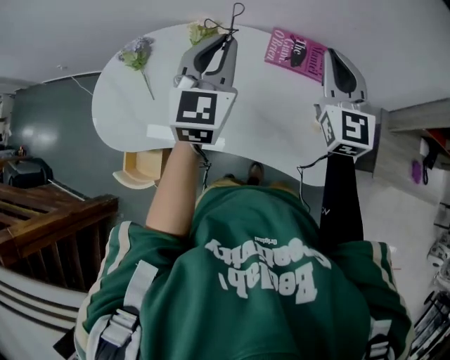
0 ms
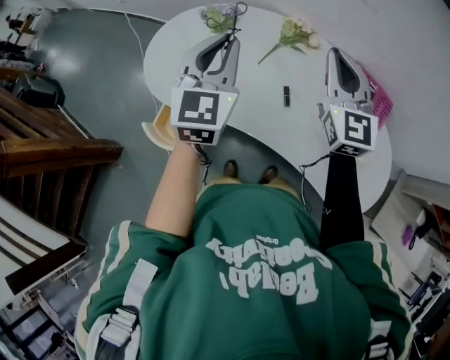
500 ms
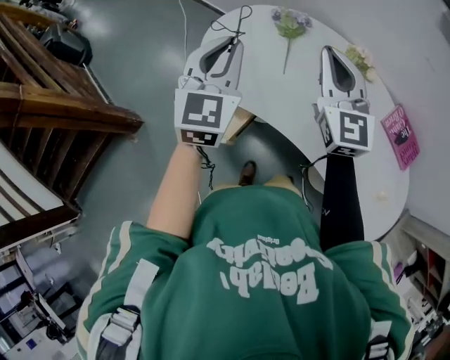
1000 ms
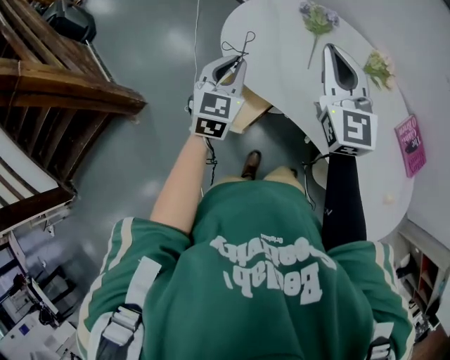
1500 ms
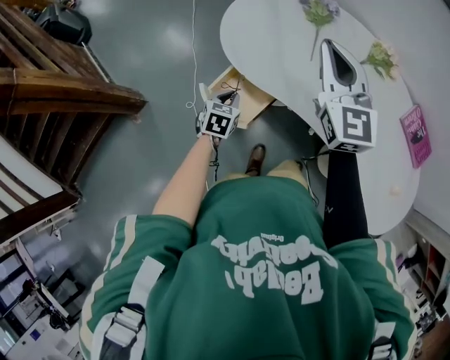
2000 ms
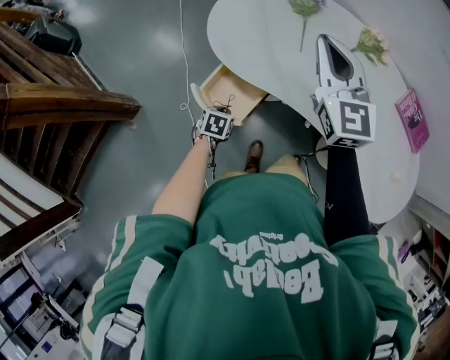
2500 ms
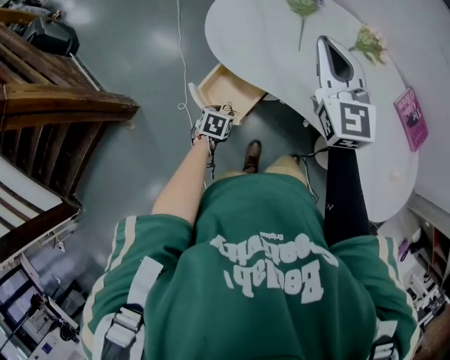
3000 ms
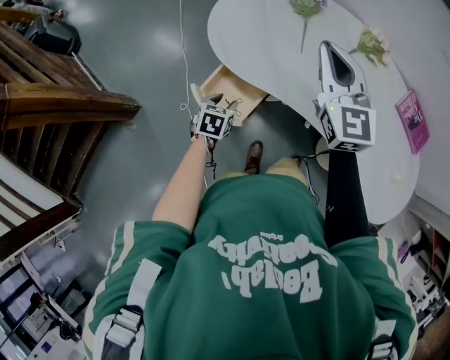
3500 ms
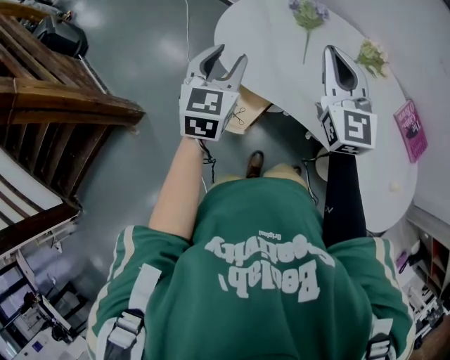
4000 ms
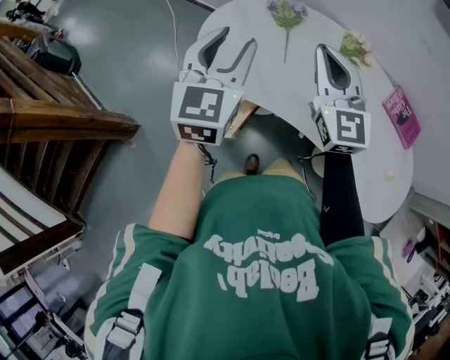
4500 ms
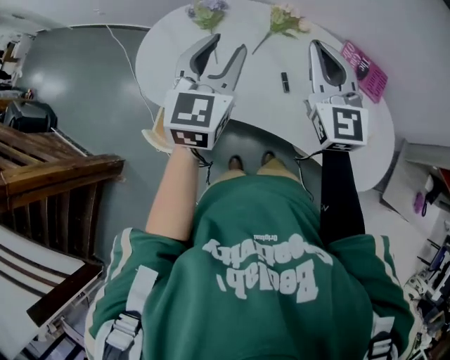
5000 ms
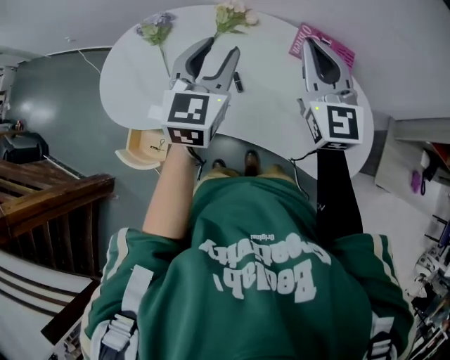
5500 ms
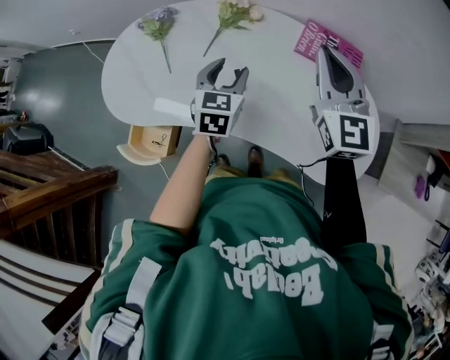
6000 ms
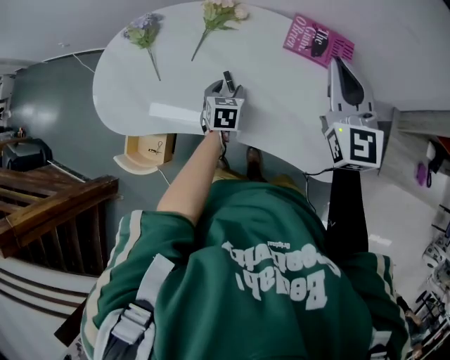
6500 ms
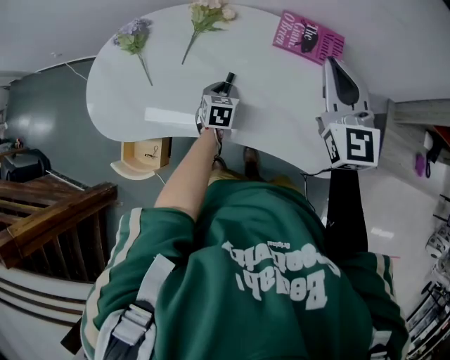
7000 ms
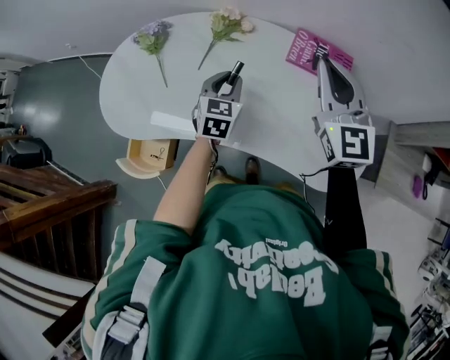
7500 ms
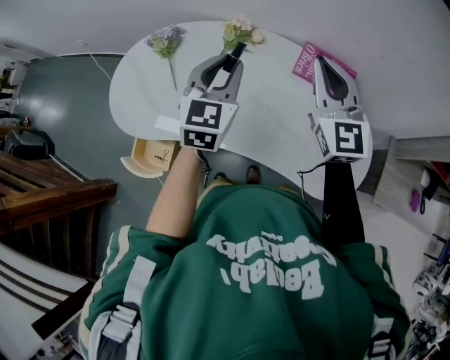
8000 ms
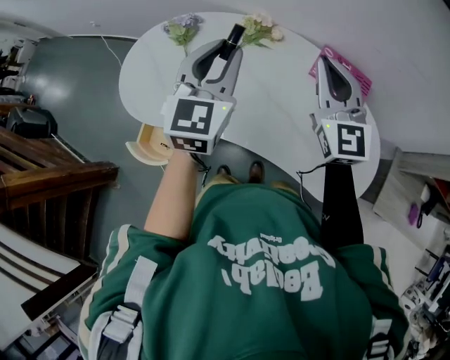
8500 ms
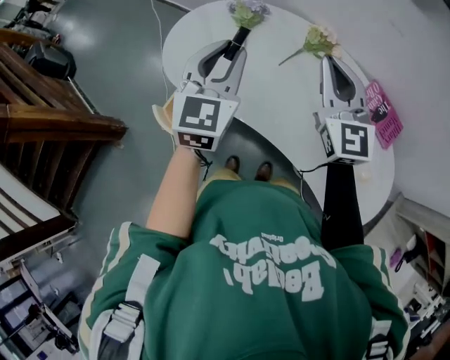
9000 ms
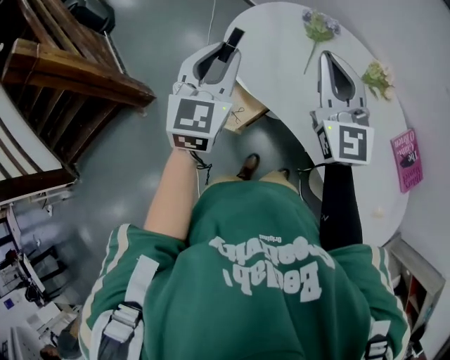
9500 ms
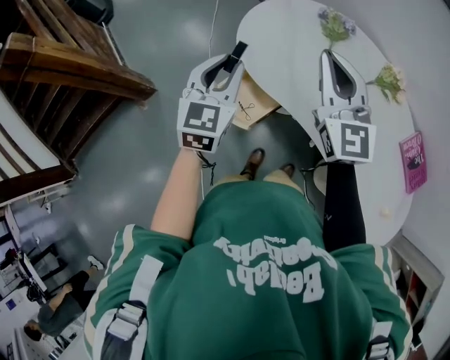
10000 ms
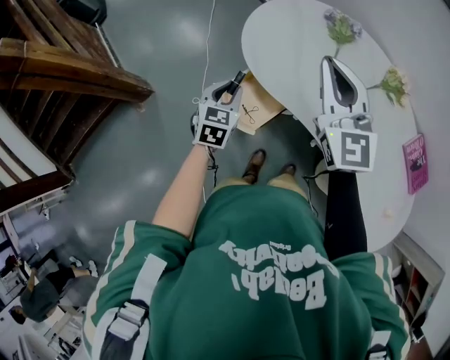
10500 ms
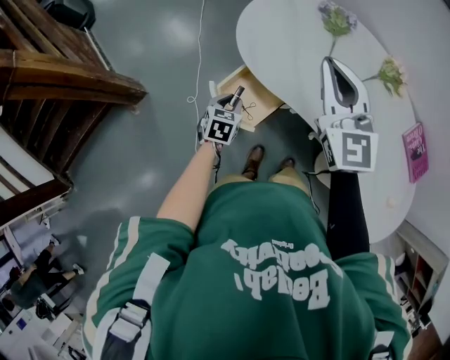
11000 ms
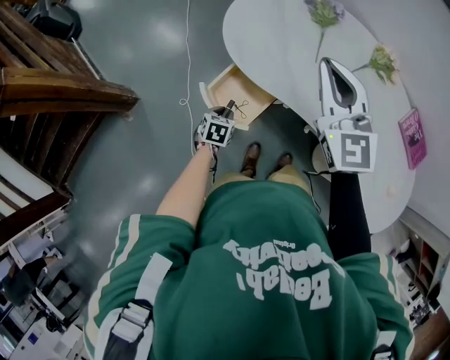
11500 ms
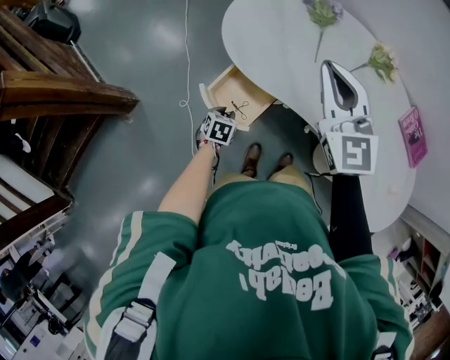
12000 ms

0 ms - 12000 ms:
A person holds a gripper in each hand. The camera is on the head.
0 ms - 2000 ms: The two grippers travel together, some 50 cm. The left gripper tilts its fingers some 40 degrees downward, while the right gripper rotates some 40 degrees.
2000 ms - 4000 ms: The left gripper moves upward, some 25 cm, angles its fingers upward, by roughly 30 degrees, and opens.
4000 ms - 6000 ms: The pair of grippers is taken some 40 cm. The right gripper swivels approximately 30 degrees. Meanwhile the left gripper swivels roughly 20 degrees.
6000 ms - 8000 ms: The left gripper travels upward by roughly 15 cm, and closes.
8000 ms - 10000 ms: The pair of grippers is taken approximately 40 cm. The right gripper swivels approximately 40 degrees. The left gripper swivels about 40 degrees.
10000 ms - 12000 ms: The left gripper moves downward, roughly 35 cm, and tips its fingers downward by roughly 40 degrees.

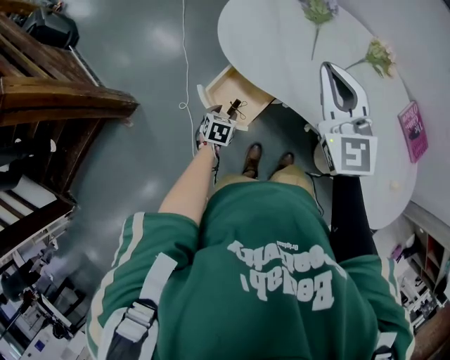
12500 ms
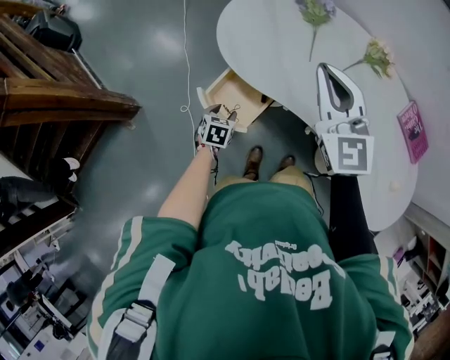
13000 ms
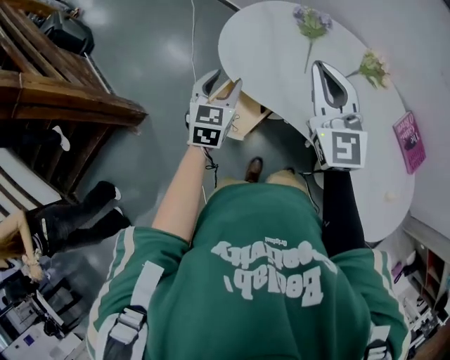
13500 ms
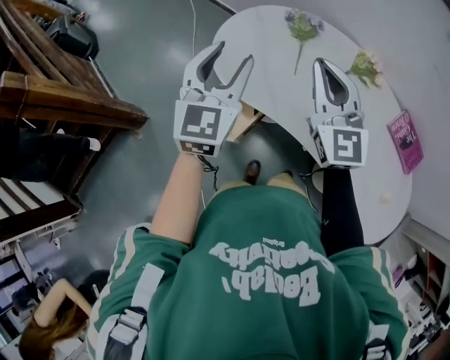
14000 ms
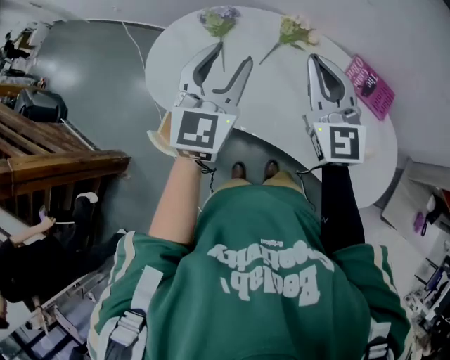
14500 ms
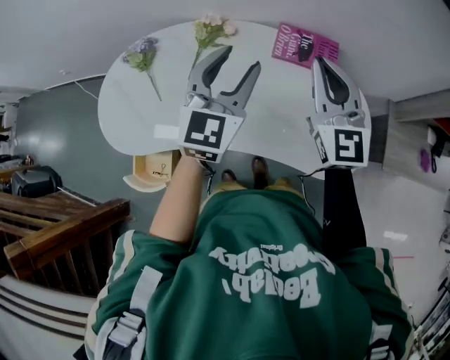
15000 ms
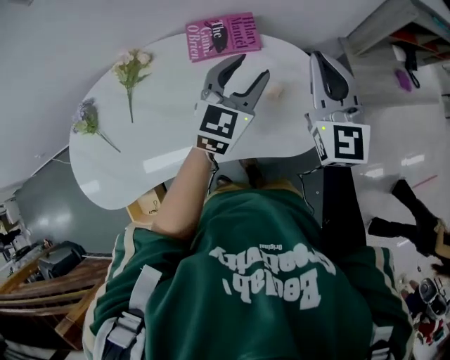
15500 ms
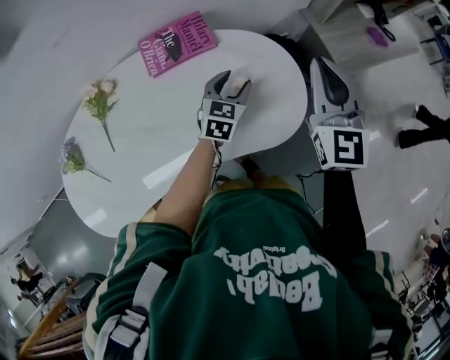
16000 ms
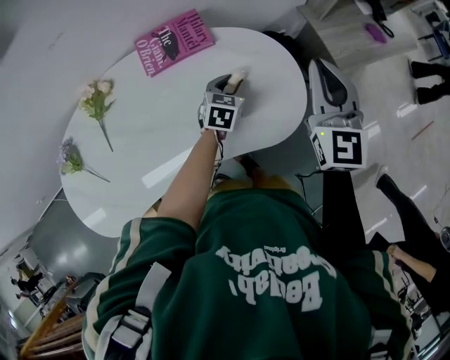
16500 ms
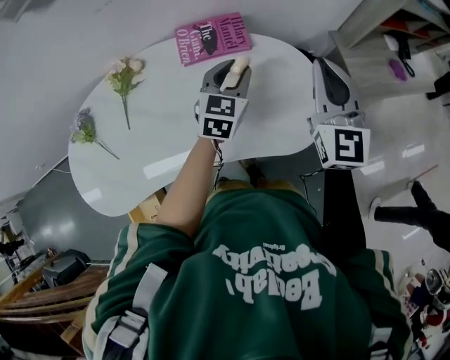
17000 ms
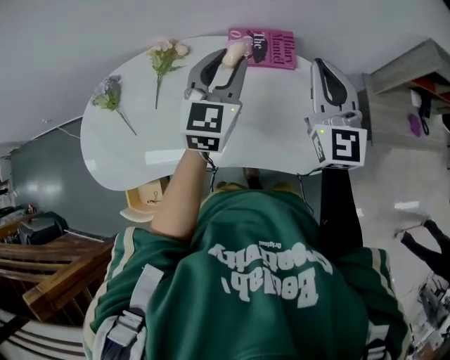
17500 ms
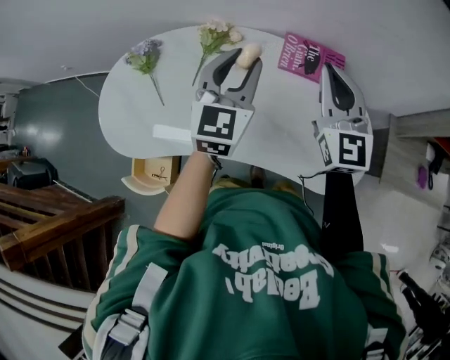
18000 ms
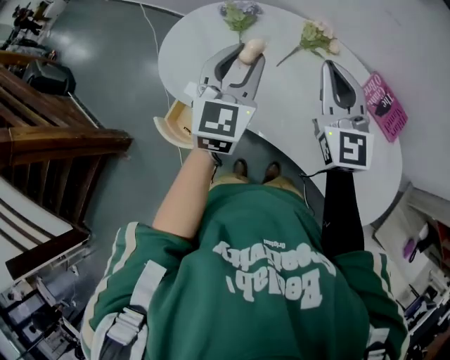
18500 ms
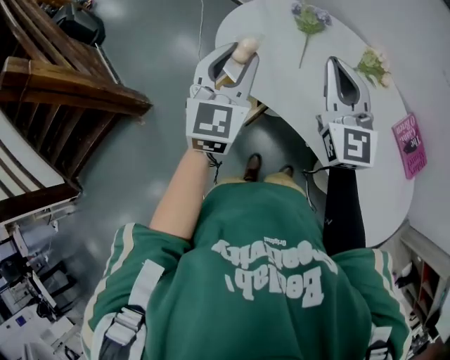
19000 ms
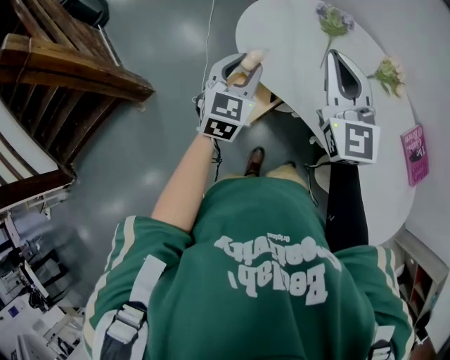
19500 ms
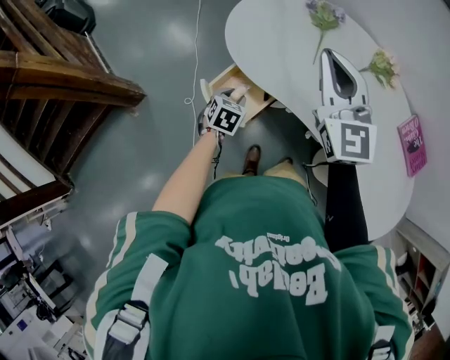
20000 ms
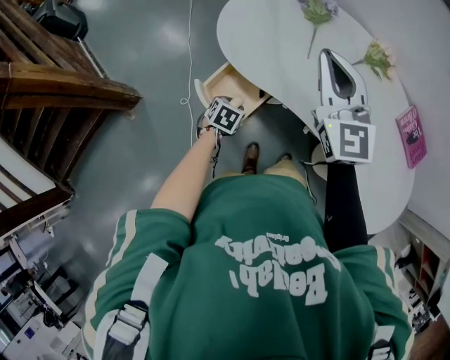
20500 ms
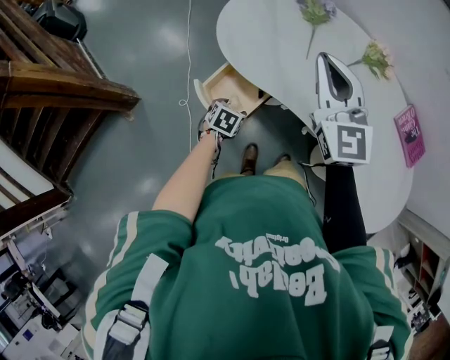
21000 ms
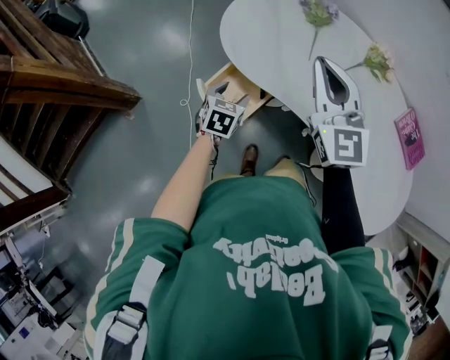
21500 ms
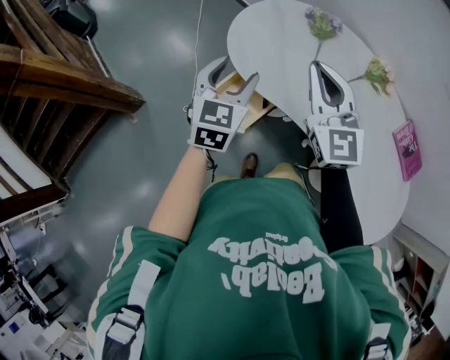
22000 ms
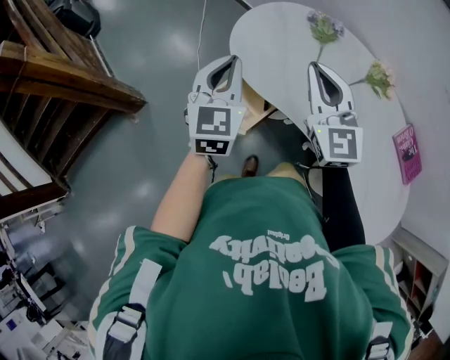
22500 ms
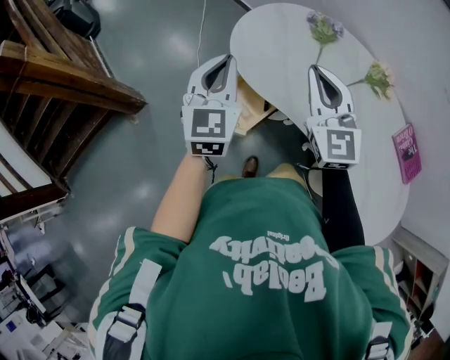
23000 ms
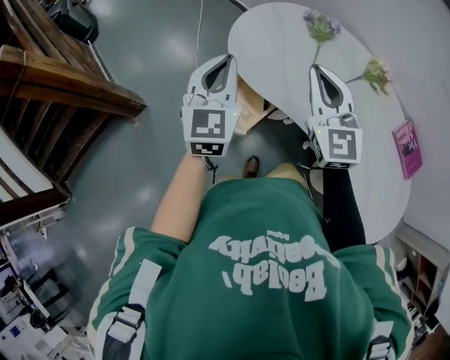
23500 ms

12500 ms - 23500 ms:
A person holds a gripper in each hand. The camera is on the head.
12500 ms - 14500 ms: The right gripper goes approximately 25 cm to the right, and rotates some 20 degrees. The left gripper heads upward and to the right, covering about 60 cm, and angles its fingers upward, by approximately 60 degrees.
14500 ms - 16000 ms: Both grippers are carried roughly 50 cm. The right gripper rotates some 60 degrees, while the left gripper tips its fingers downward by approximately 30 degrees.
16000 ms - 18000 ms: The left gripper changes place by about 40 cm, and changes its angle by approximately 50 degrees. The right gripper moves approximately 30 cm, and changes its angle by approximately 40 degrees.
18000 ms - 20000 ms: The two grippers travel together, roughly 50 cm. The right gripper rotates roughly 40 degrees. The left gripper tilts its fingers some 50 degrees downward.
20000 ms - 21500 ms: The left gripper opens.
21500 ms - 23500 ms: The left gripper heads upward, covering approximately 25 cm, angles its fingers upward, by some 40 degrees, and closes.

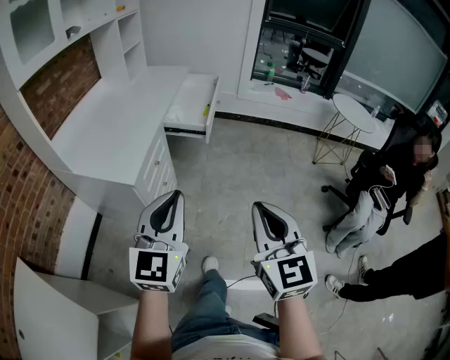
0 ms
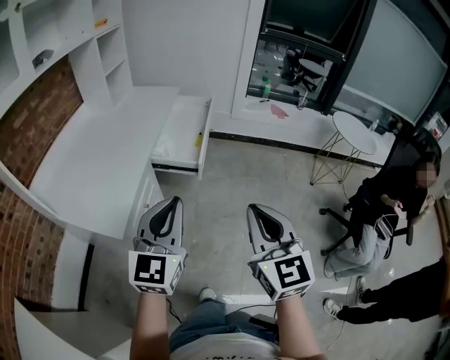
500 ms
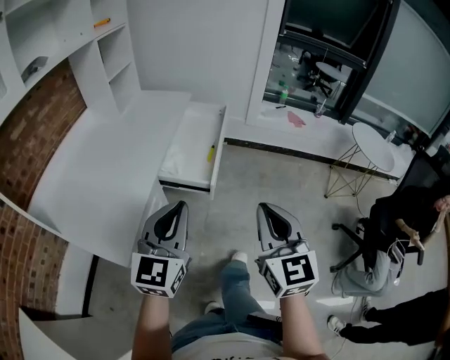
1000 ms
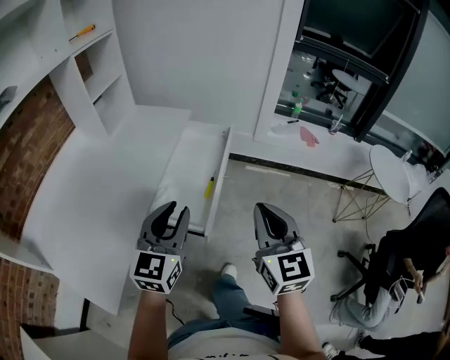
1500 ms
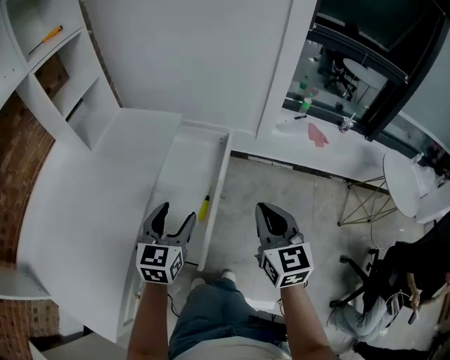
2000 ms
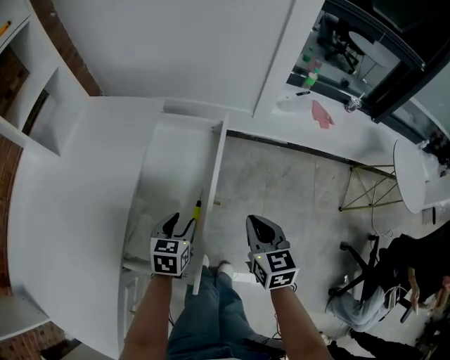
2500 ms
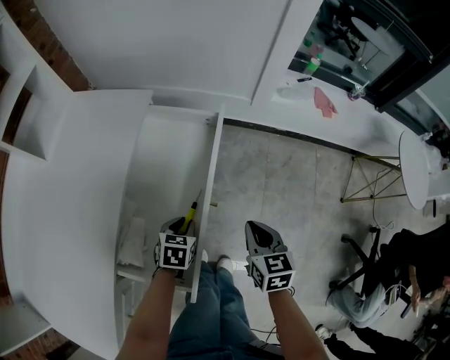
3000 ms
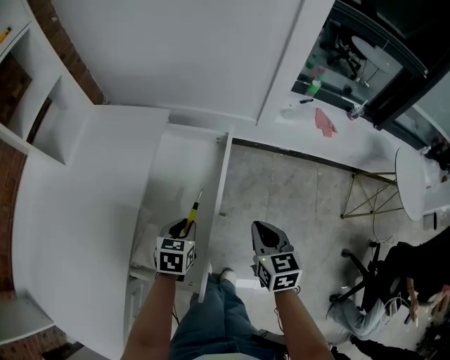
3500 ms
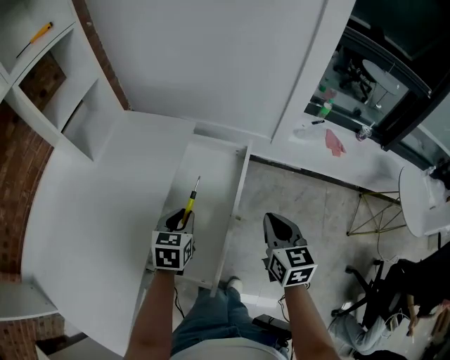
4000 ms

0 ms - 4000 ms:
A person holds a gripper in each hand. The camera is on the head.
0 ms - 2000 ms: Both grippers are carried forward, approximately 70 cm. The left gripper swivels about 20 degrees, and opens up.
2000 ms - 4000 ms: The right gripper moves forward and downward, roughly 15 cm. Meanwhile the left gripper goes roughly 10 cm forward, travels downward and back again, approximately 30 cm each way, turns by roughly 20 degrees, and closes.
